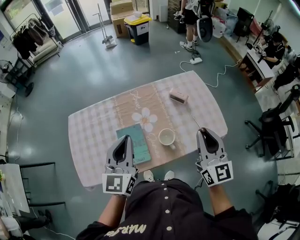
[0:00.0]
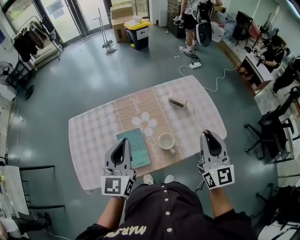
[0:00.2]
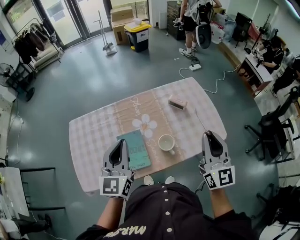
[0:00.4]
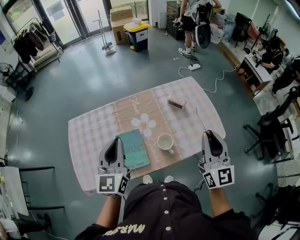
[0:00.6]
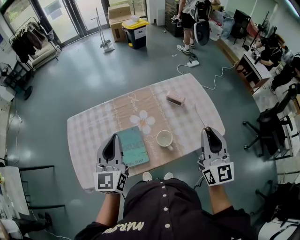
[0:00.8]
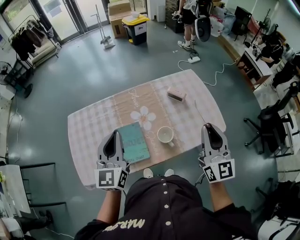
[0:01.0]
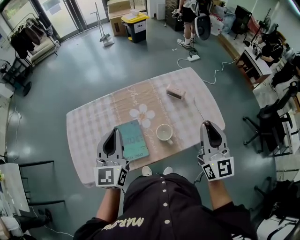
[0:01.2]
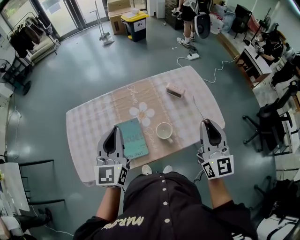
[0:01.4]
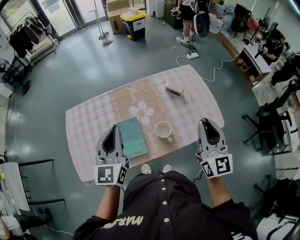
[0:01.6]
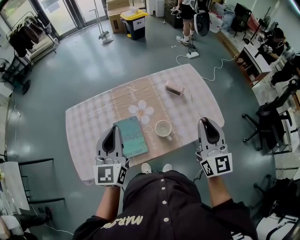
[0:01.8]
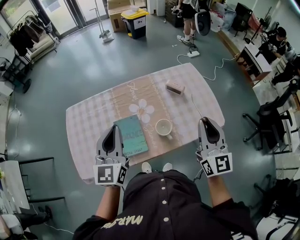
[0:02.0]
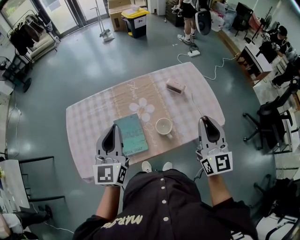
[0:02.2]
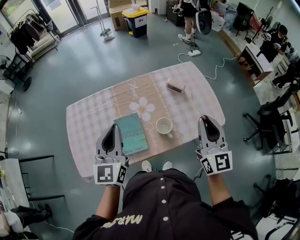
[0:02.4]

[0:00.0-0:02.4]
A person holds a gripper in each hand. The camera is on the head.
0.0 to 1.2 s: The grippers move only a little.
1.2 to 2.4 s: The two grippers keep their place.

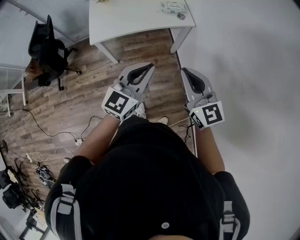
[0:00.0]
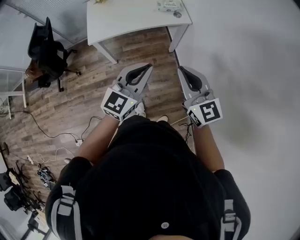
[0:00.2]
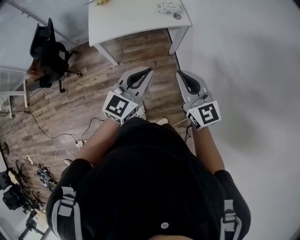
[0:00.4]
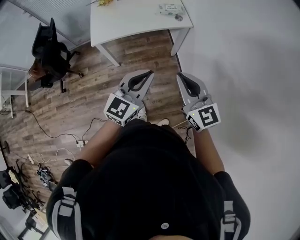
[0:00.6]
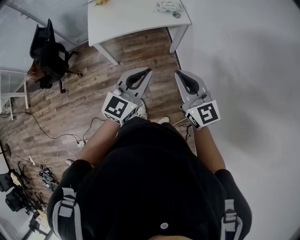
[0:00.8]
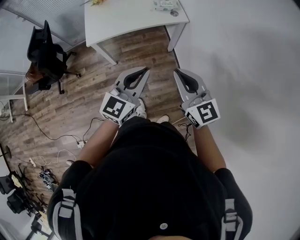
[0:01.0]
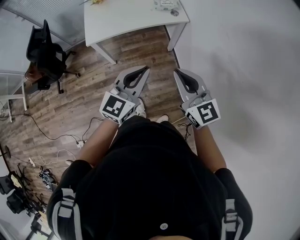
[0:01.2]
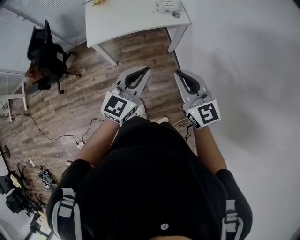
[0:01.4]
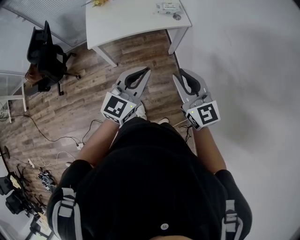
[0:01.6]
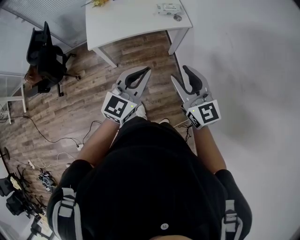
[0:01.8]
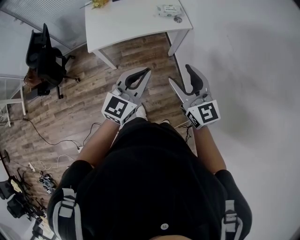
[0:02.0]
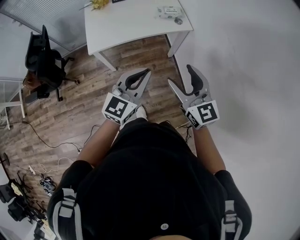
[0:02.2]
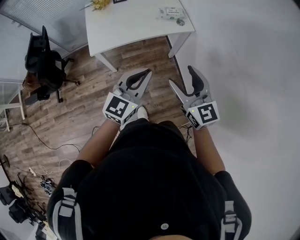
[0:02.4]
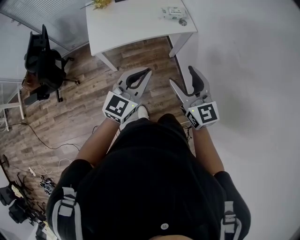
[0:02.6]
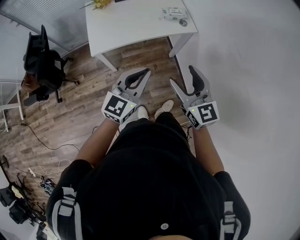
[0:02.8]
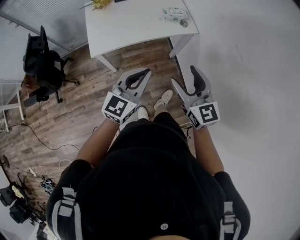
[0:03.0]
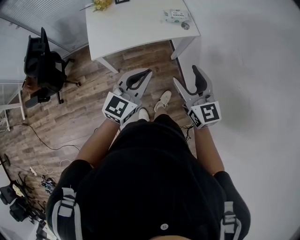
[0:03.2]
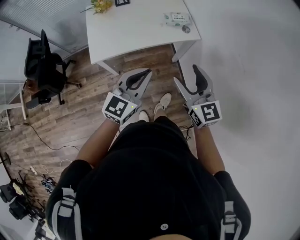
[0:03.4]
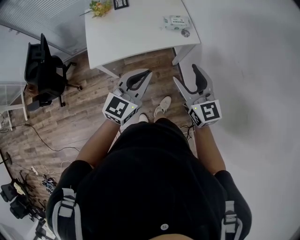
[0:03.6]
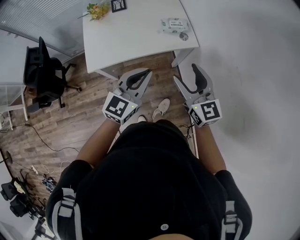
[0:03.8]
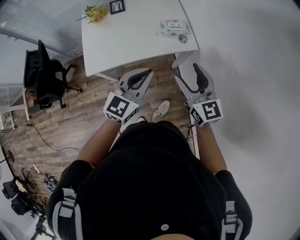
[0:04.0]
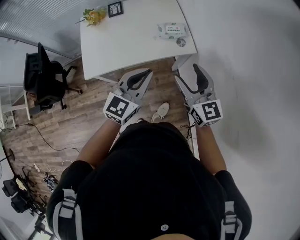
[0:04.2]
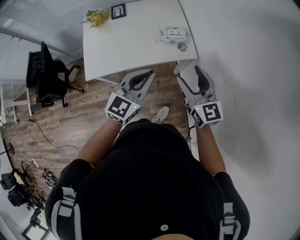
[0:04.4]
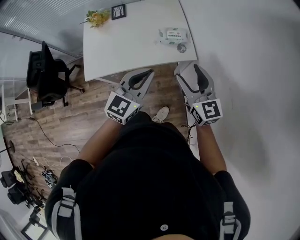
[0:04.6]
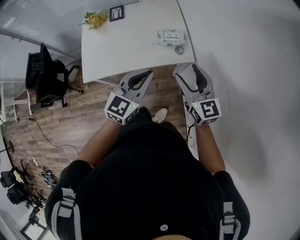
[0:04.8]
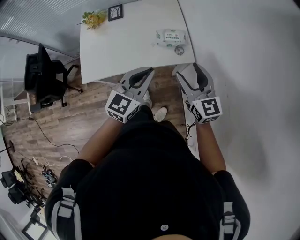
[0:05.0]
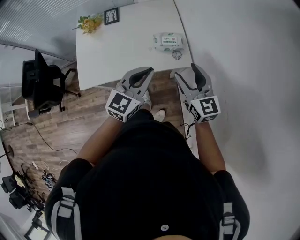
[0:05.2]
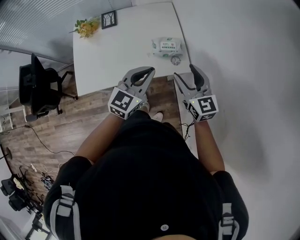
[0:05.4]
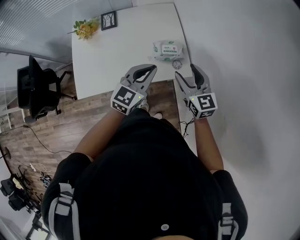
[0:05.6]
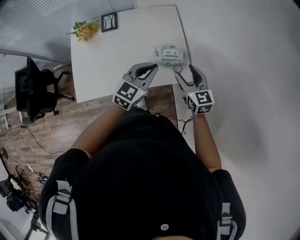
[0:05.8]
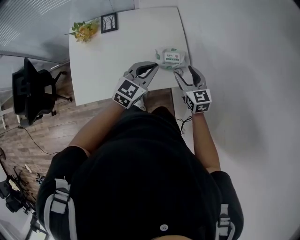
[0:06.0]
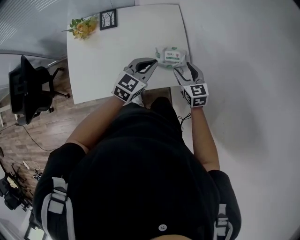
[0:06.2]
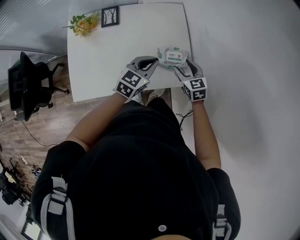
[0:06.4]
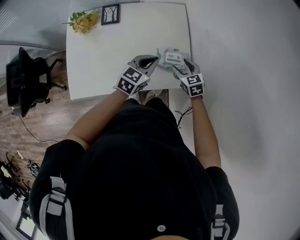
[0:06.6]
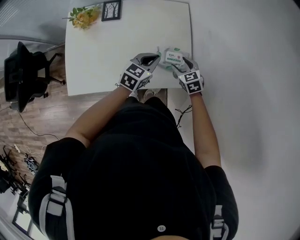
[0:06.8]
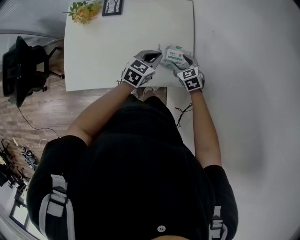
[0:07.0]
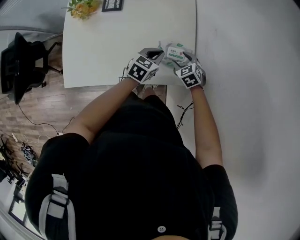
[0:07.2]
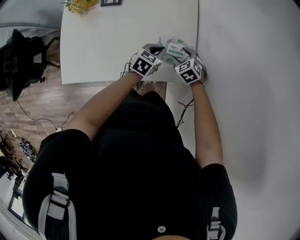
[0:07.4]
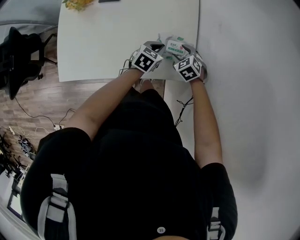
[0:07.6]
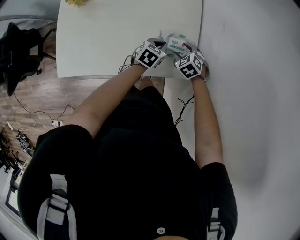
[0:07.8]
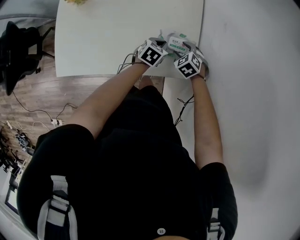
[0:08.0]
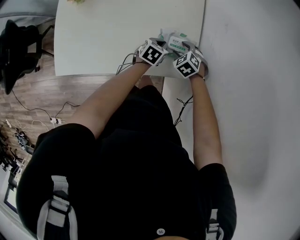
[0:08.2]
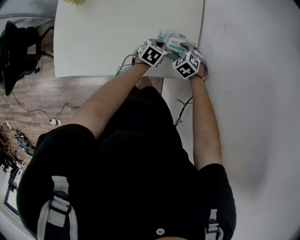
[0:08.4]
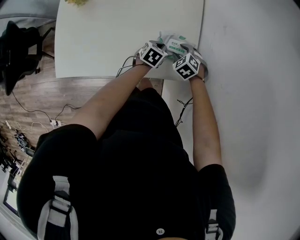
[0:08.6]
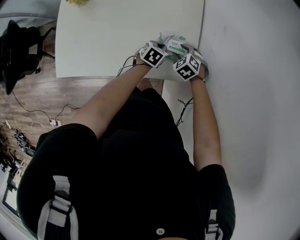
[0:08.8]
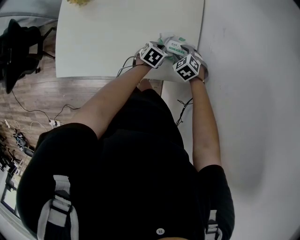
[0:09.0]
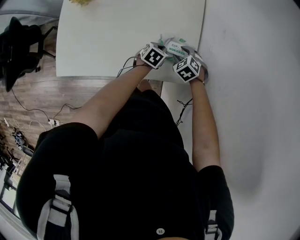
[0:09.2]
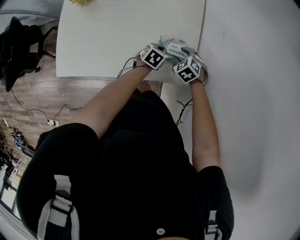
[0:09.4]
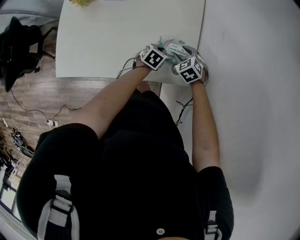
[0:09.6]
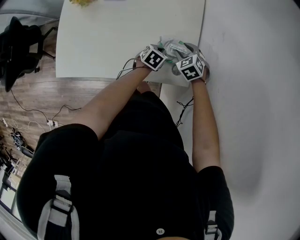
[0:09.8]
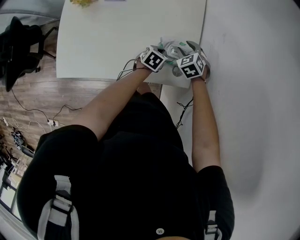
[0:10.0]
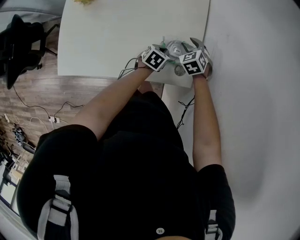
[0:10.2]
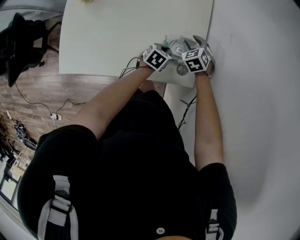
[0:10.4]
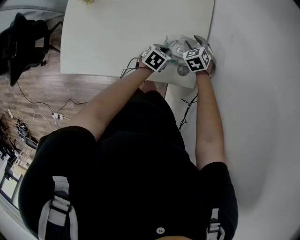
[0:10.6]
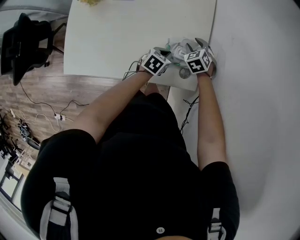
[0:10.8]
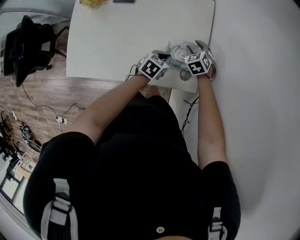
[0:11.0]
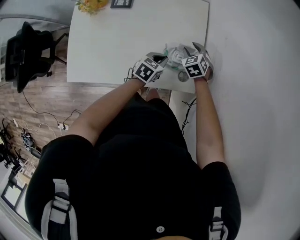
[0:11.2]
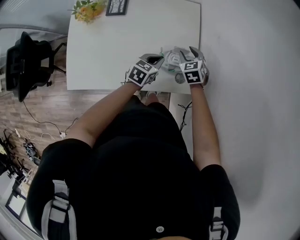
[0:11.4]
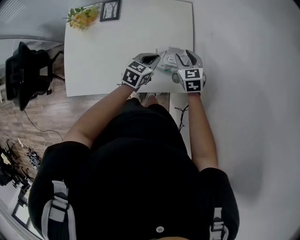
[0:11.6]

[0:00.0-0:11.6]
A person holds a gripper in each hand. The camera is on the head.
0.0 to 1.4 s: The grippers stay close to where they were, moving slightly.
1.4 to 2.8 s: Both grippers travel together to the left and forward, about 15 cm. The right gripper opens.
2.8 to 4.4 s: Both grippers move forward and to the right, about 25 cm.
4.4 to 5.8 s: The right gripper is displaced forward and downward by approximately 25 cm, while the left gripper moves forward, some 25 cm.
5.8 to 7.2 s: Both grippers travel together downward and forward, approximately 20 cm. The right gripper tilts its fingers some 40 degrees downward, while the left gripper swivels some 30 degrees.
7.2 to 8.8 s: The left gripper moves downward, roughly 10 cm.
8.8 to 10.2 s: The right gripper heads forward, covering roughly 5 cm.
10.2 to 11.6 s: The two grippers go roughly 10 cm upward. The right gripper changes its angle by roughly 30 degrees.

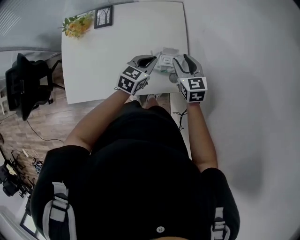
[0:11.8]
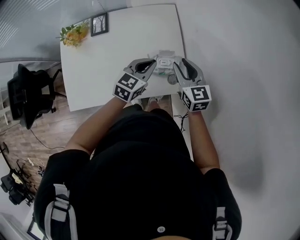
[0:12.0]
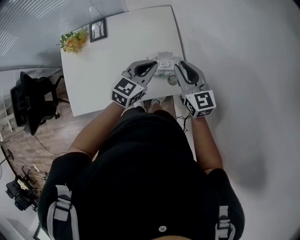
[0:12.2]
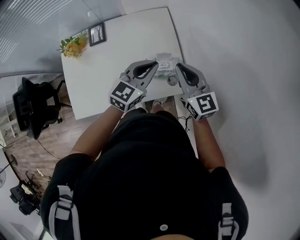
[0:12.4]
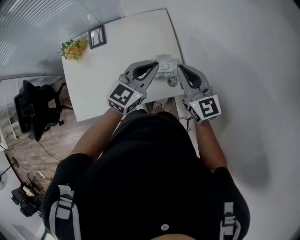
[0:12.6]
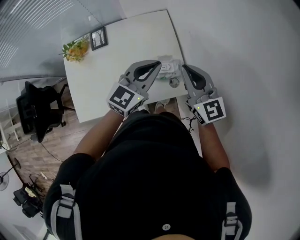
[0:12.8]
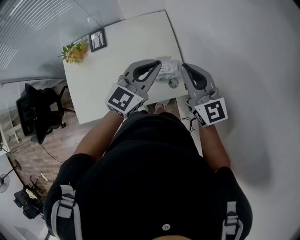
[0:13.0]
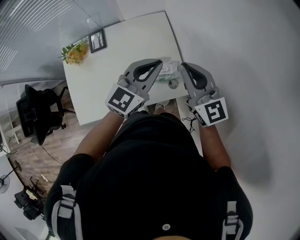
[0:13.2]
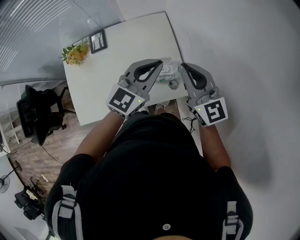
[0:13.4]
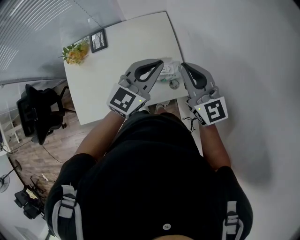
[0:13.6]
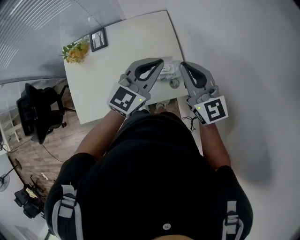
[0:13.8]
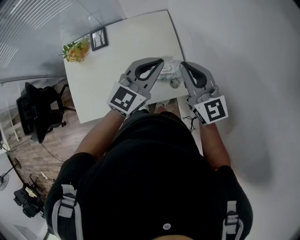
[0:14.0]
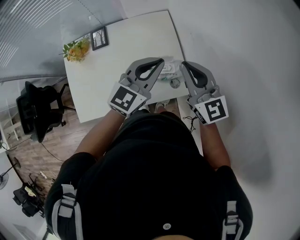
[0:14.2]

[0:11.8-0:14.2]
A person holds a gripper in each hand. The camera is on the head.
11.8 to 13.0 s: Both grippers move upward, approximately 20 cm. The left gripper turns by some 30 degrees; the right gripper turns by roughly 30 degrees, and closes up.
13.0 to 14.2 s: The grippers stay close to where they were, moving slightly.

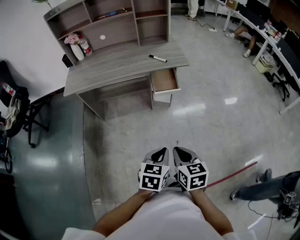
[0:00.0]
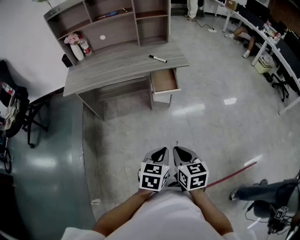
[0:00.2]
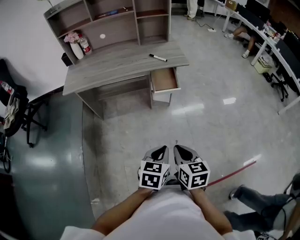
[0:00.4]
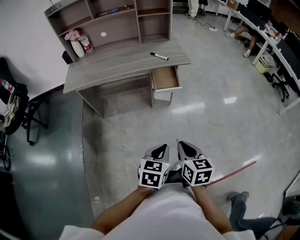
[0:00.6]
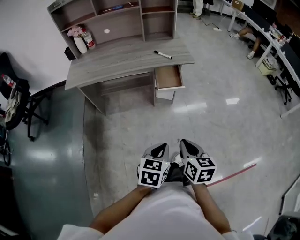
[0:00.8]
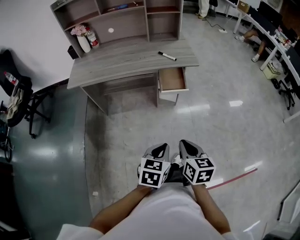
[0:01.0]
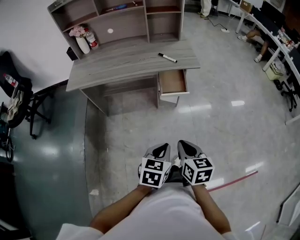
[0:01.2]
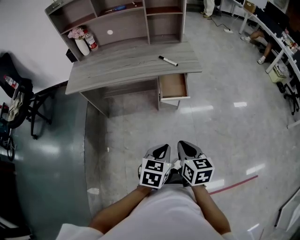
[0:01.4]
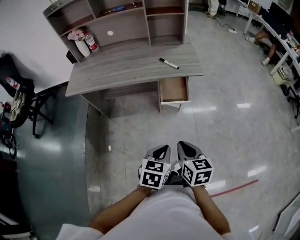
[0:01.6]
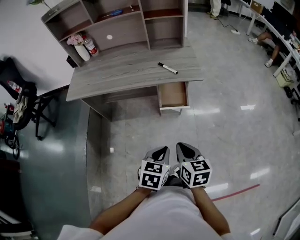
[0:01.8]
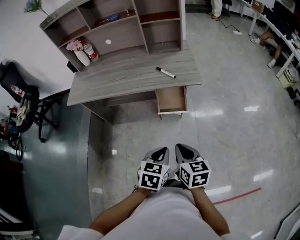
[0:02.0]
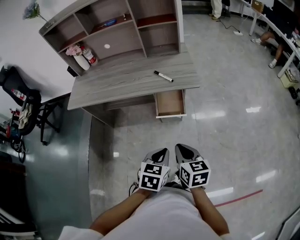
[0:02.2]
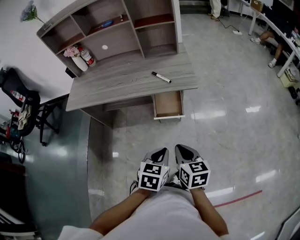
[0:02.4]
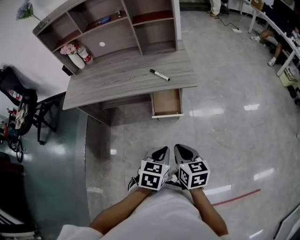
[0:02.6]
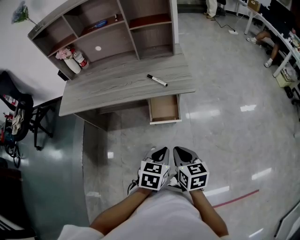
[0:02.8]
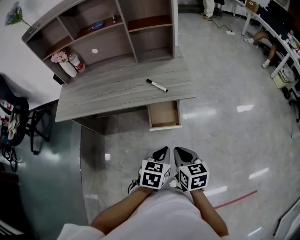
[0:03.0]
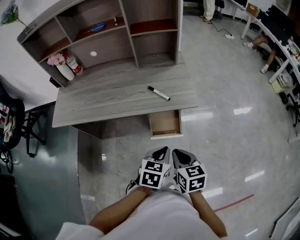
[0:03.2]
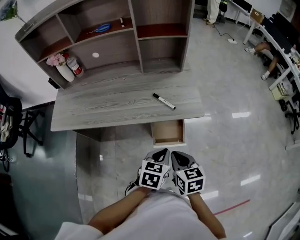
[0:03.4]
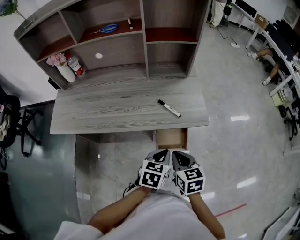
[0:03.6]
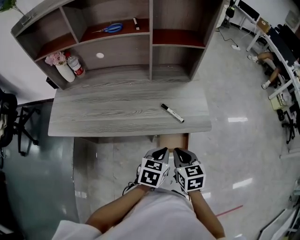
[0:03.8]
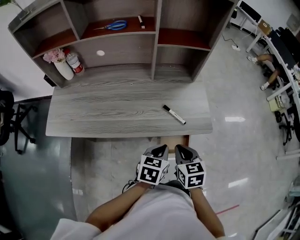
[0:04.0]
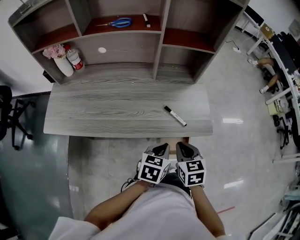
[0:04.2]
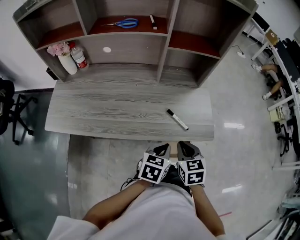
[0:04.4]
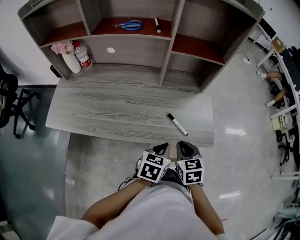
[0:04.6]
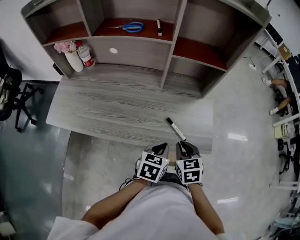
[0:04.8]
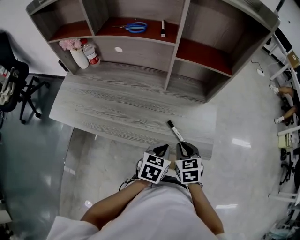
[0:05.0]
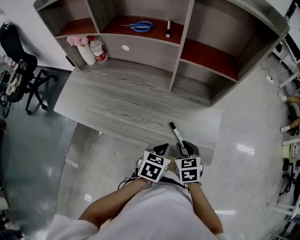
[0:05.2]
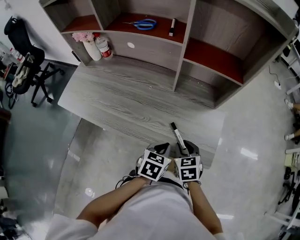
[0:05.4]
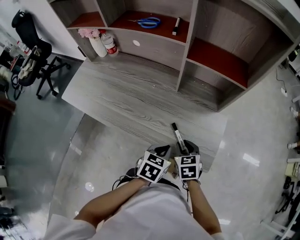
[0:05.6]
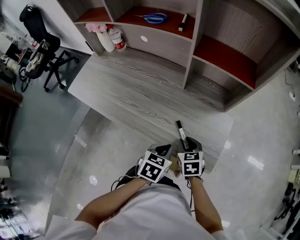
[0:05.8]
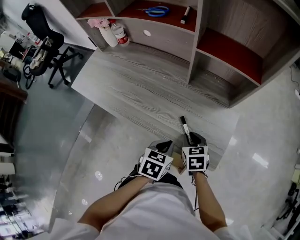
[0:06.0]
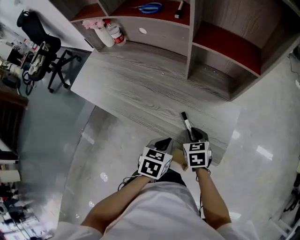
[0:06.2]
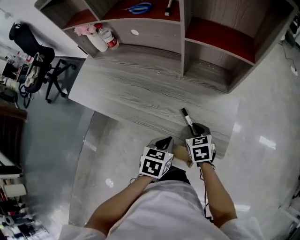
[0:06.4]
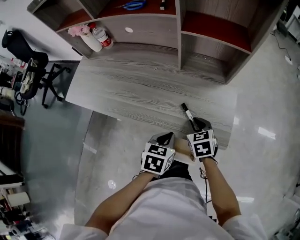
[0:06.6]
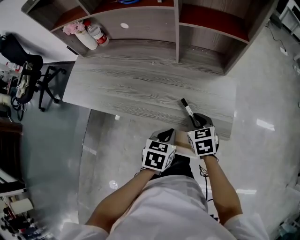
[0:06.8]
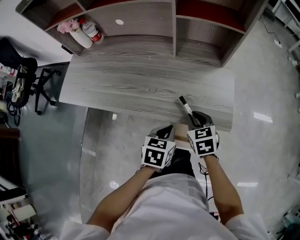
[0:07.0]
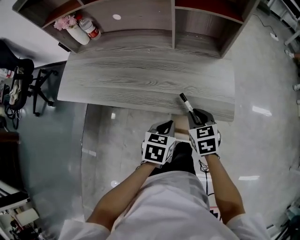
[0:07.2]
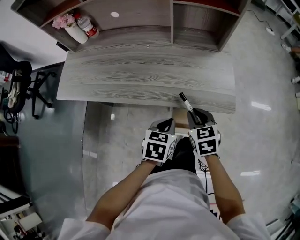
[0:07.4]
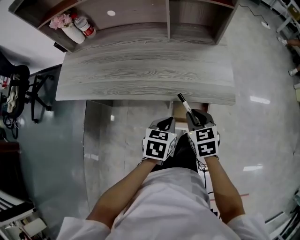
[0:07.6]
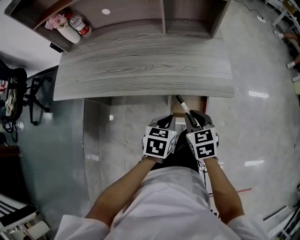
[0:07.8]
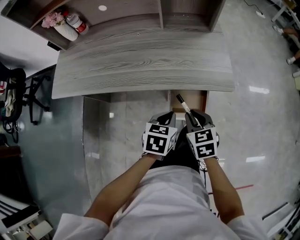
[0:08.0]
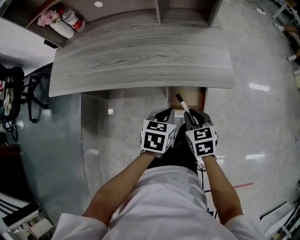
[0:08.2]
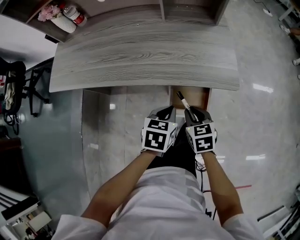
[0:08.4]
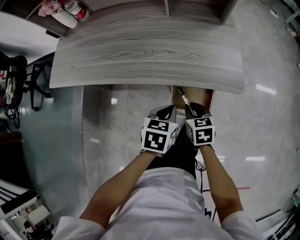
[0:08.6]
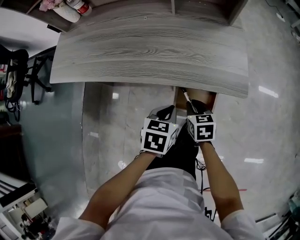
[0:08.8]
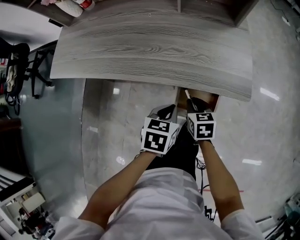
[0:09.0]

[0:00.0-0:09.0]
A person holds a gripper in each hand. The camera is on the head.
0.0 to 1.6 s: Both grippers move forward, roughly 15 cm.
1.6 to 3.0 s: The left gripper shifts some 20 cm forward and to the right, while the right gripper goes roughly 15 cm forward.
3.0 to 4.4 s: The grippers both shift forward and to the left by roughly 25 cm. The right gripper rotates some 20 degrees.
4.4 to 6.0 s: The left gripper shifts by approximately 5 cm, and swivels about 30 degrees. Meanwhile the right gripper ends up about 15 cm from where it was, and turns by about 30 degrees.
6.0 to 7.6 s: The right gripper goes about 15 cm backward, while the left gripper moves backward and to the left, about 10 cm.
7.6 to 9.0 s: The right gripper heads downward, covering some 10 cm.
